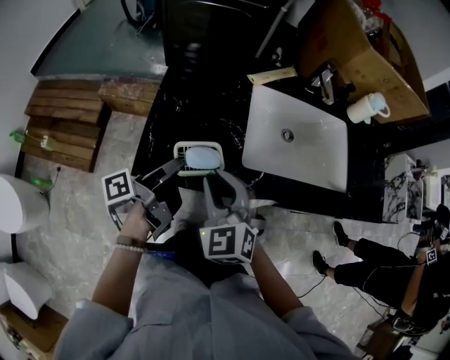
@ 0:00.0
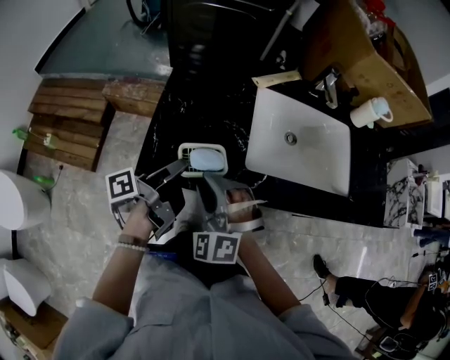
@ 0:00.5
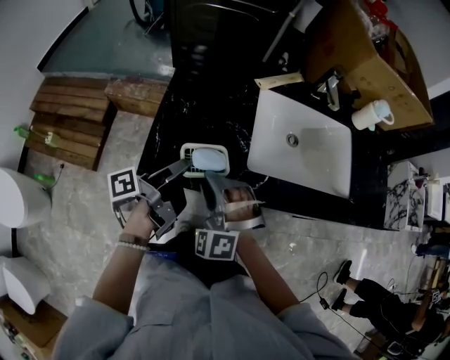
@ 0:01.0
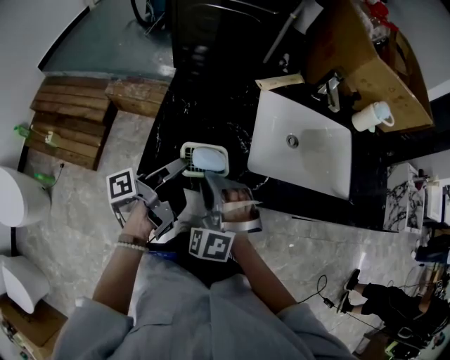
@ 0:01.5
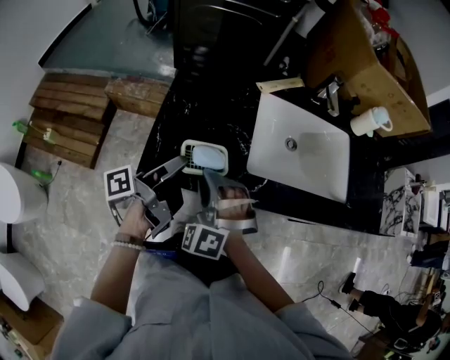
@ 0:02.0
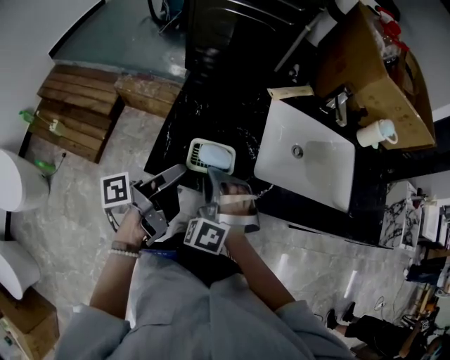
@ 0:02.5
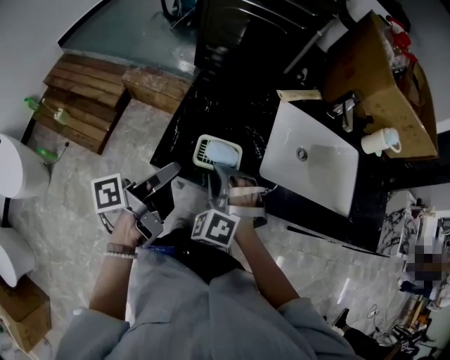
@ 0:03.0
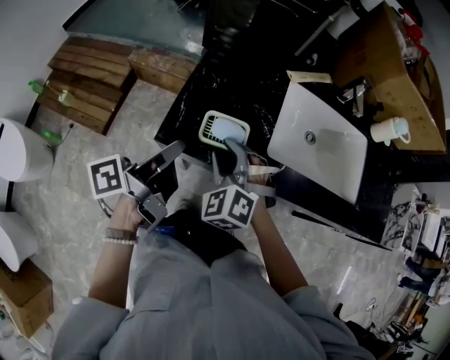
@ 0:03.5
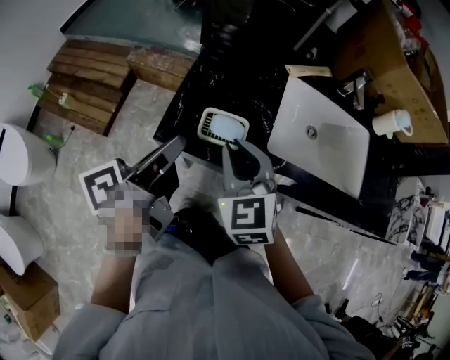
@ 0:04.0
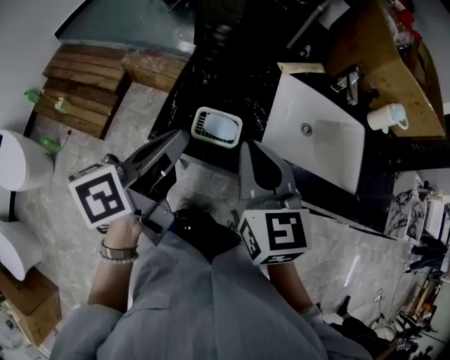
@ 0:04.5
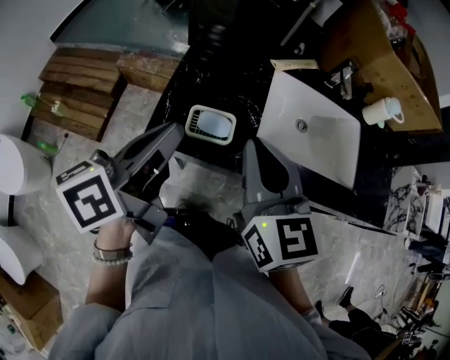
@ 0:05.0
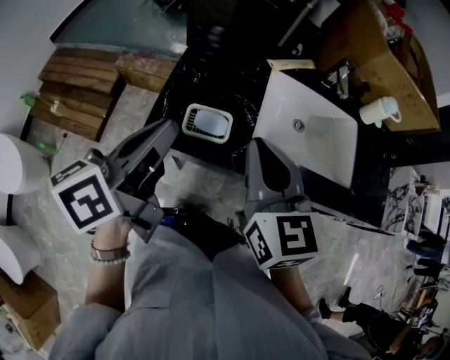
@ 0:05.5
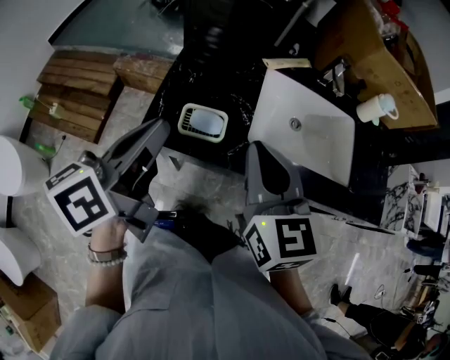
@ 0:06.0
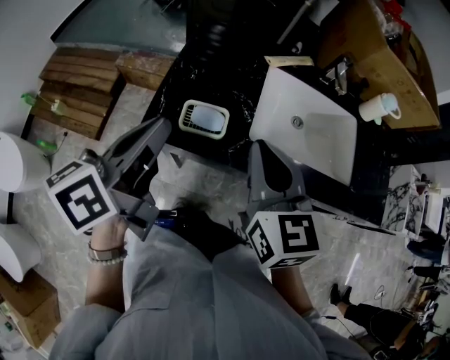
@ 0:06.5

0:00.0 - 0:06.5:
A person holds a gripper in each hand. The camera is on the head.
0:00.0 - 0:02.0: The right gripper changes place by approximately 5 cm, and turns by approximately 40 degrees.
0:02.0 - 0:04.5: The right gripper is displaced upward by roughly 15 cm, and rolls clockwise, seen from behind, by approximately 70 degrees.
0:04.5 - 0:06.5: The right gripper moves roughly 5 cm.

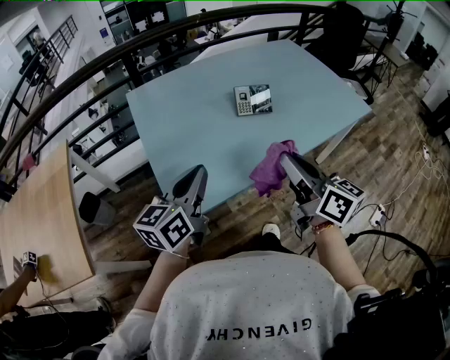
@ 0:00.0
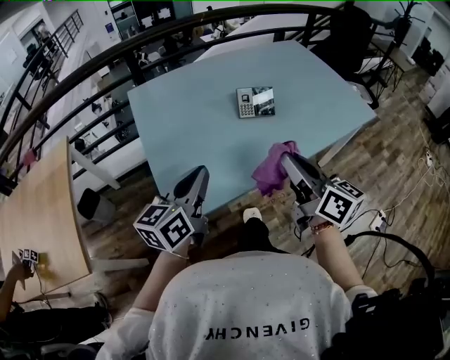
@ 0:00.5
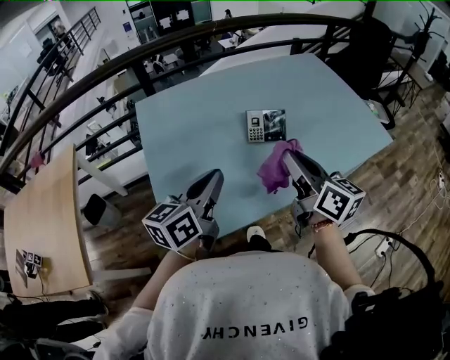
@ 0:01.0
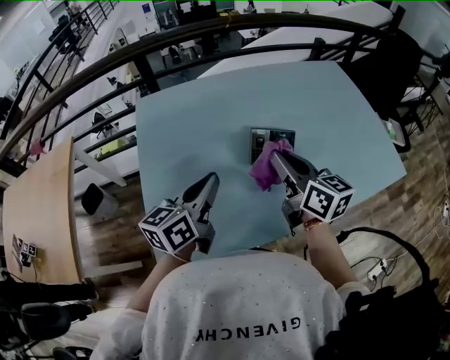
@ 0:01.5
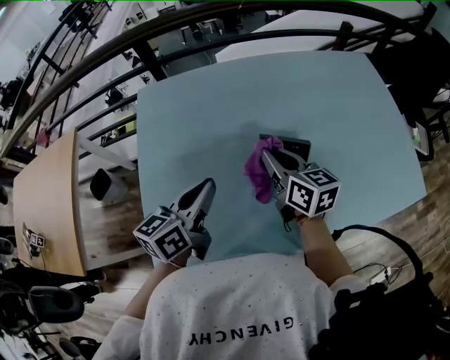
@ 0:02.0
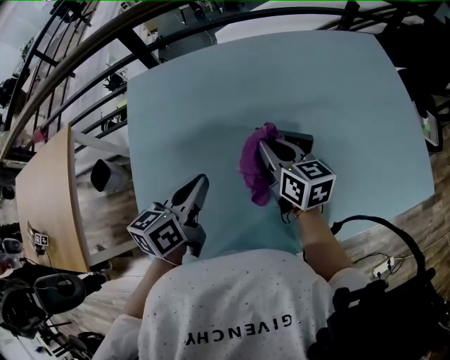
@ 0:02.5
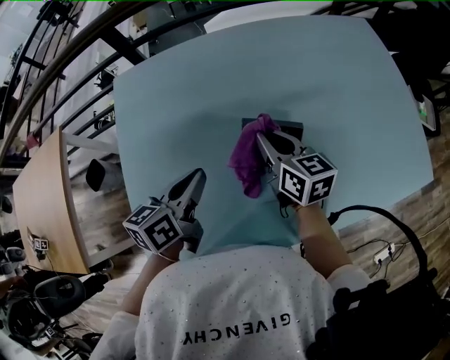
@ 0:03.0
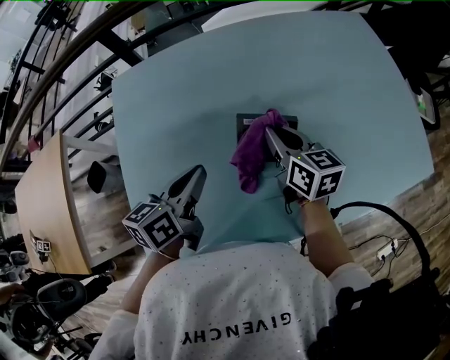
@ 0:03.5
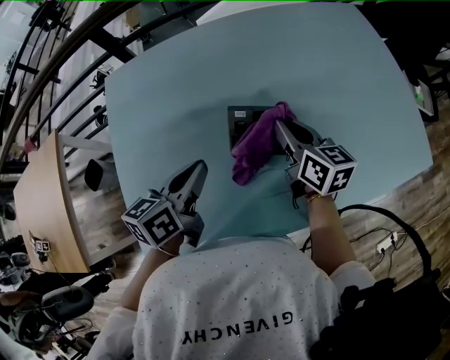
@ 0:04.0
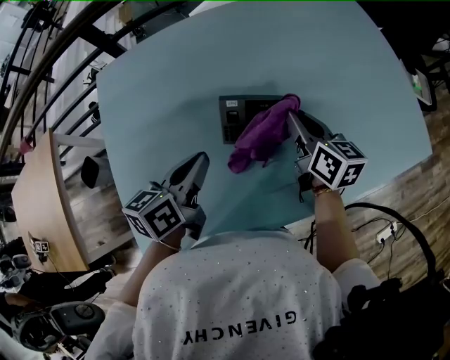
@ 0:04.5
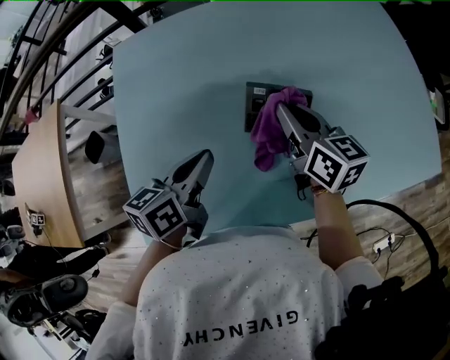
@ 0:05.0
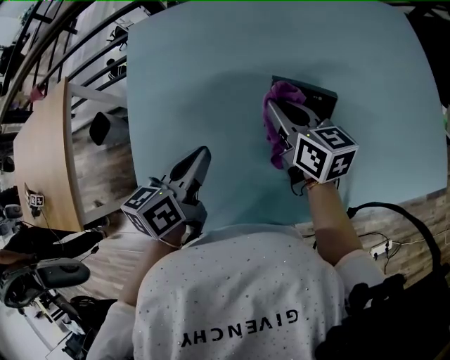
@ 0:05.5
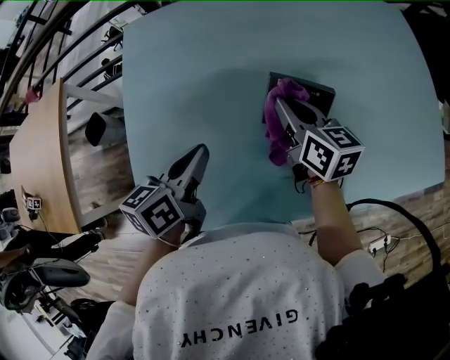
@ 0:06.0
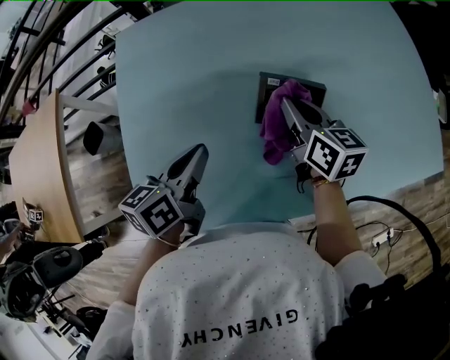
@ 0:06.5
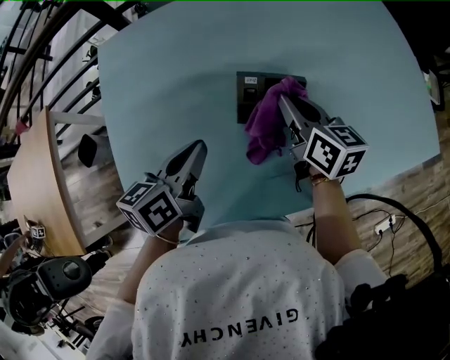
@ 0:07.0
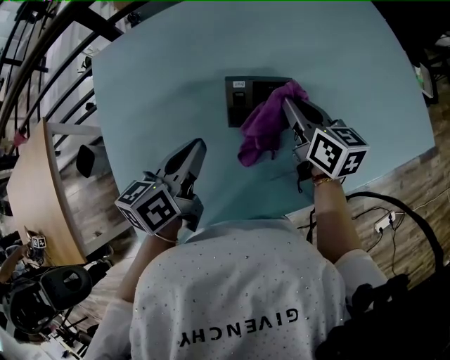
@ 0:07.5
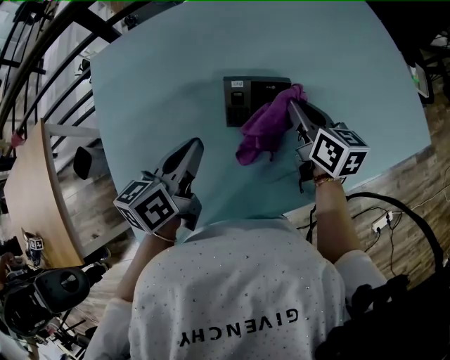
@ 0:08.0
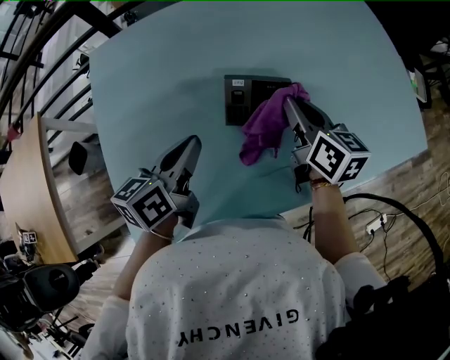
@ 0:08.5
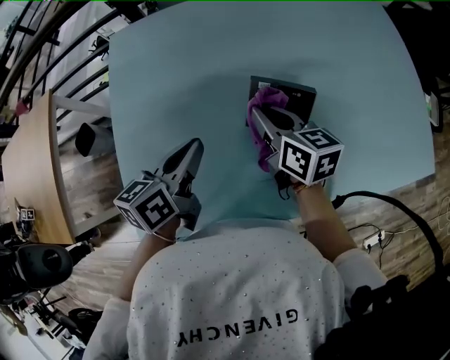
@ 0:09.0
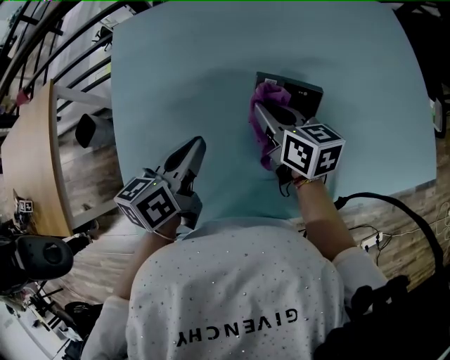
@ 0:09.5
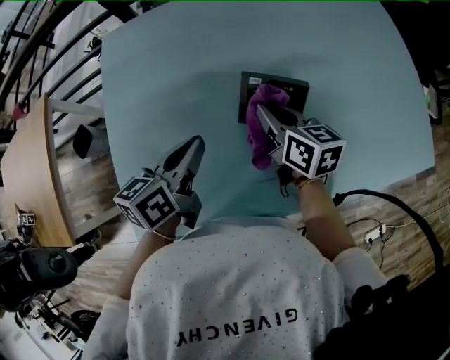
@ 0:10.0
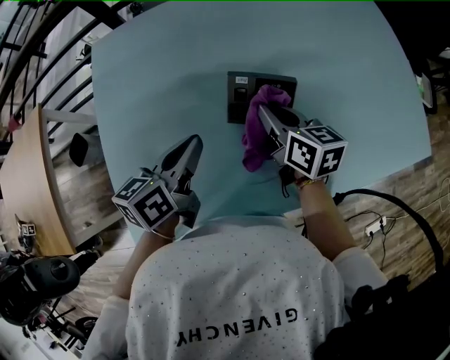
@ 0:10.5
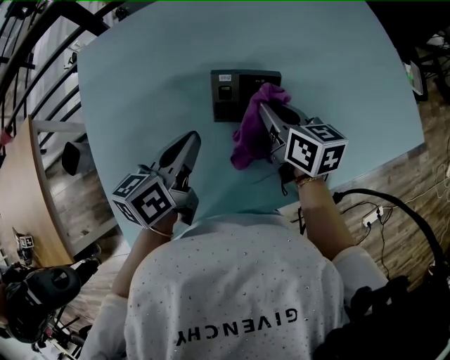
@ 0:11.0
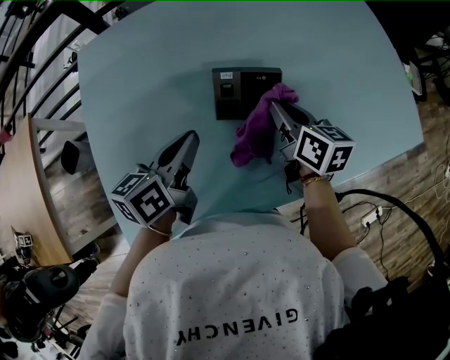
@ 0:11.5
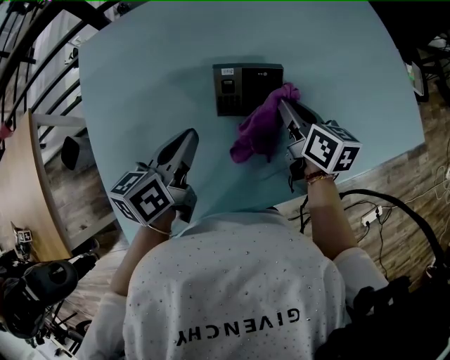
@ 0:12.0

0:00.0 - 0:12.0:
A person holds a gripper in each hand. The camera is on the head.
0:00.0 - 0:02.0: The two grippers go approximately 35 cm forward. The right gripper swivels about 20 degrees.
0:02.0 - 0:04.0: The right gripper heads to the right and downward, covering some 15 cm. The left gripper heads to the right and downward, covering approximately 10 cm.
0:04.0 - 0:06.0: The two grippers go roughly 10 cm to the left.
0:06.0 - 0:08.0: The left gripper heads to the right, covering roughly 5 cm; the right gripper shifts about 15 cm to the right.
0:08.0 - 0:10.0: The right gripper shifts about 10 cm to the left.
0:10.0 - 0:12.0: The right gripper moves to the right, approximately 10 cm.

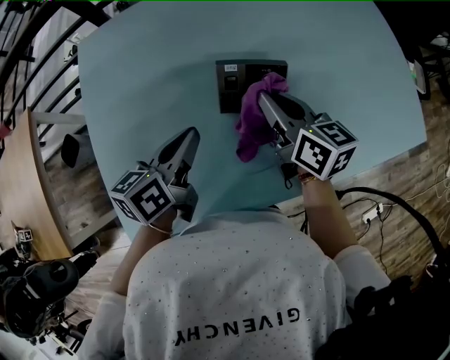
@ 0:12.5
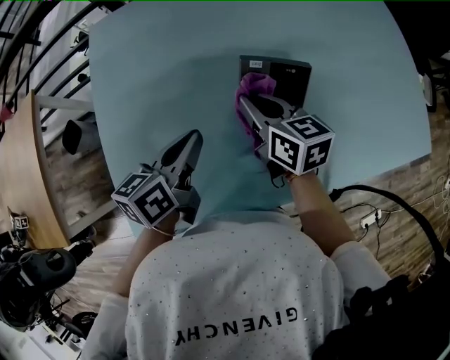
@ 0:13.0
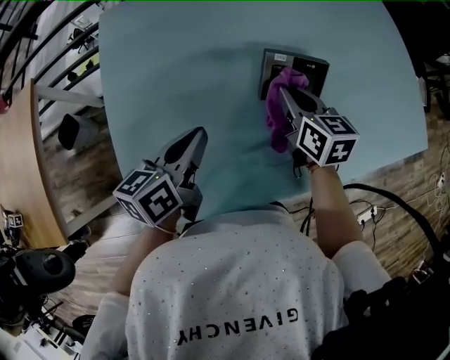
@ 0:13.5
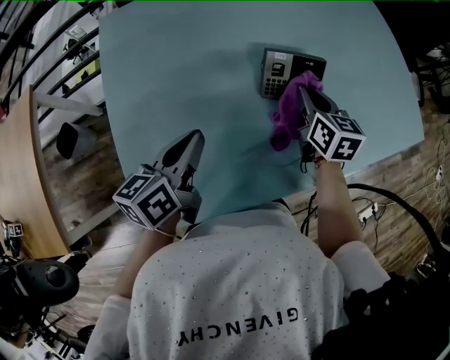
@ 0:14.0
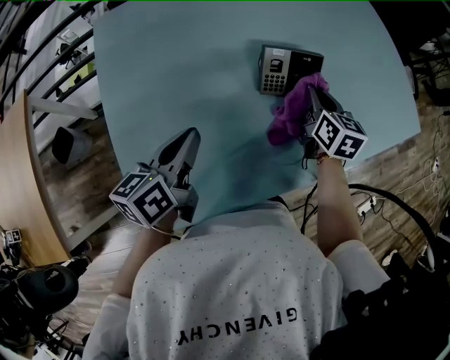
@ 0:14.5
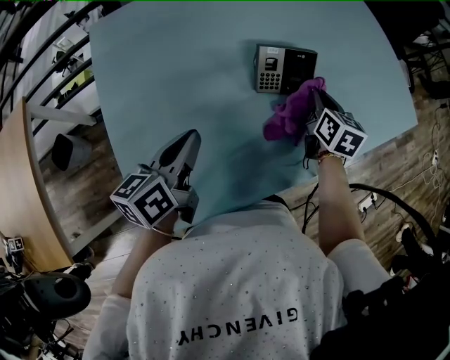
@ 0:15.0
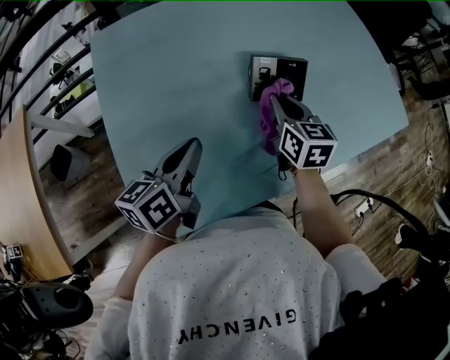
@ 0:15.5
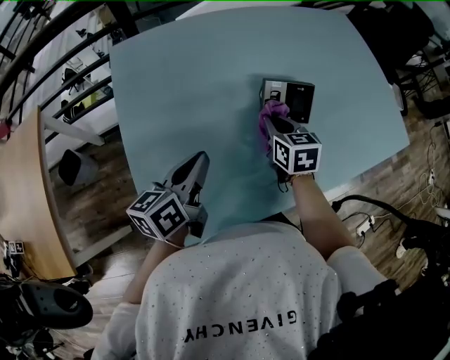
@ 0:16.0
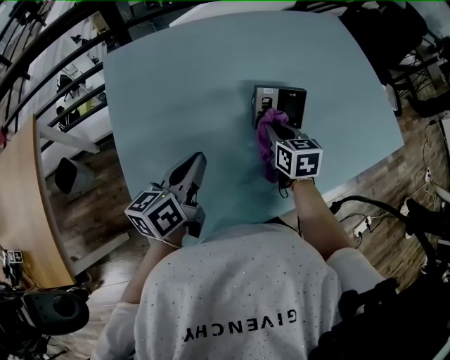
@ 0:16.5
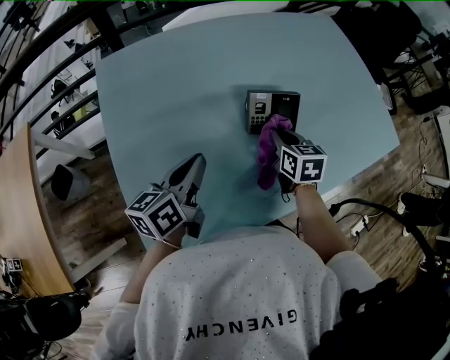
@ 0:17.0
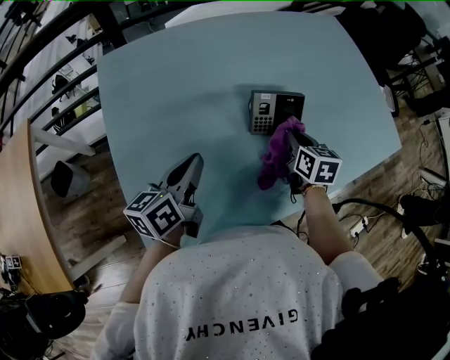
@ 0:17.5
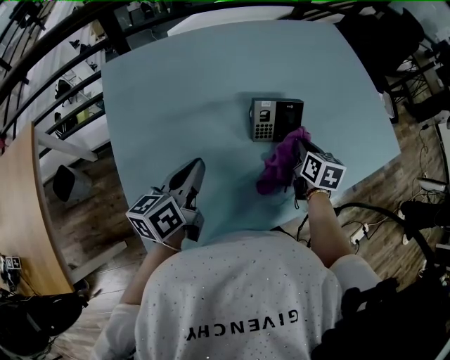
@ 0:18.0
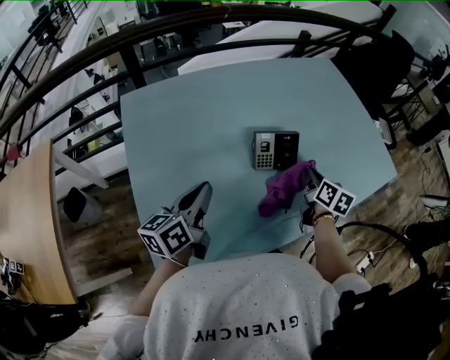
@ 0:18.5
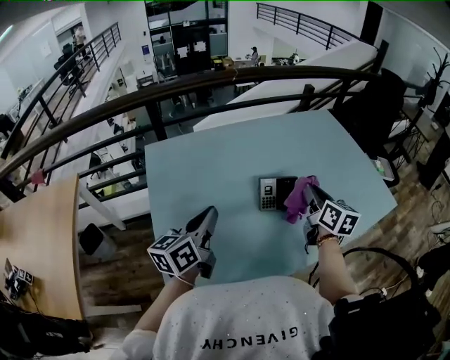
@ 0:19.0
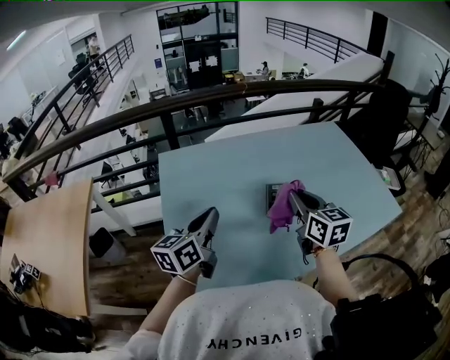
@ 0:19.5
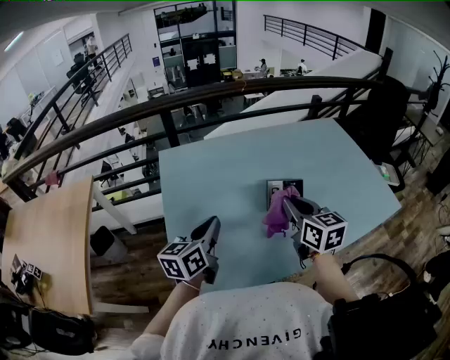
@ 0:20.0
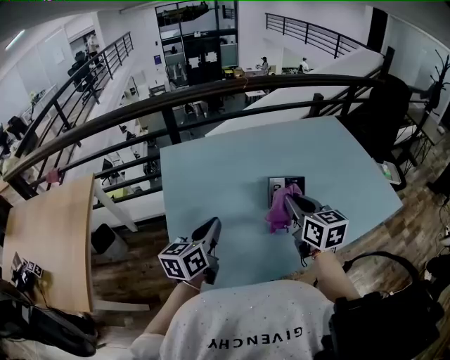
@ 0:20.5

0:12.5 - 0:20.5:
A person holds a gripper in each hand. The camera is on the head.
0:12.5 - 0:14.5: The left gripper travels to the left and backward by about 15 cm. The right gripper goes to the left and returns, about 10 cm each way, and rotates approximately 30 degrees.
0:14.5 - 0:16.5: The right gripper is displaced to the left by roughly 10 cm.
0:16.5 - 0:18.5: The right gripper goes approximately 15 cm to the right, and changes its angle by about 30 degrees.
0:18.5 - 0:20.5: The right gripper travels upward, to the left and backward by some 25 cm, and rotates approximately 30 degrees. The left gripper moves backward and upward, roughly 10 cm.
